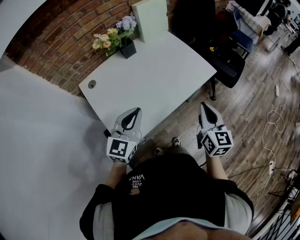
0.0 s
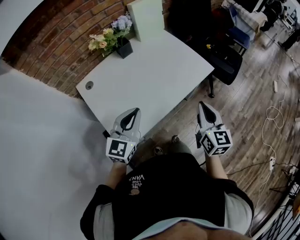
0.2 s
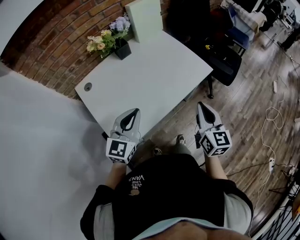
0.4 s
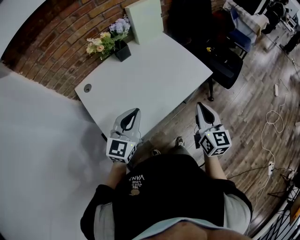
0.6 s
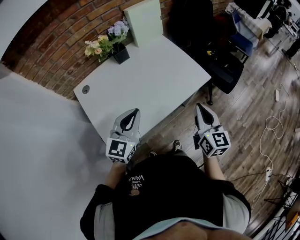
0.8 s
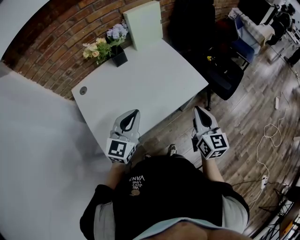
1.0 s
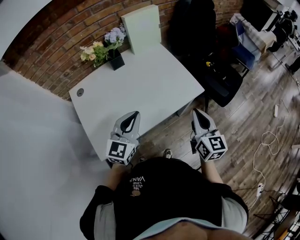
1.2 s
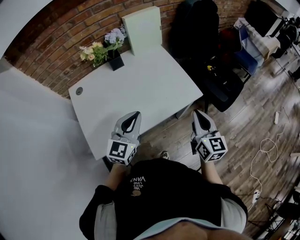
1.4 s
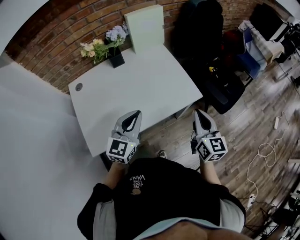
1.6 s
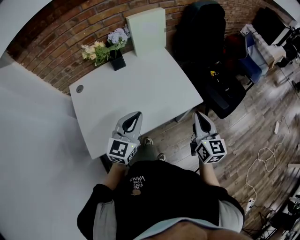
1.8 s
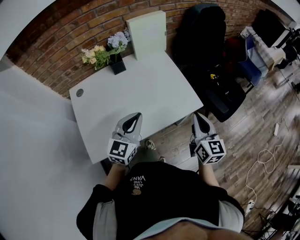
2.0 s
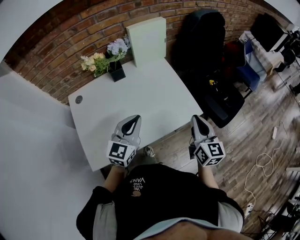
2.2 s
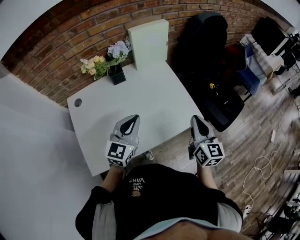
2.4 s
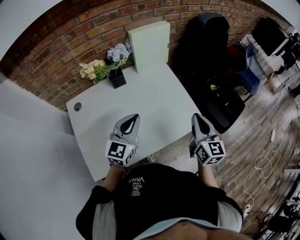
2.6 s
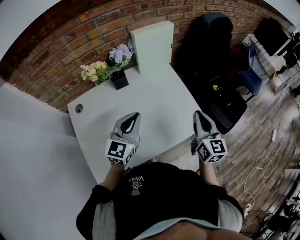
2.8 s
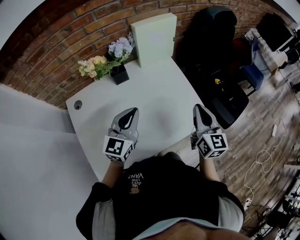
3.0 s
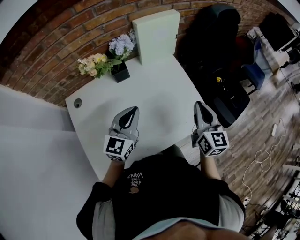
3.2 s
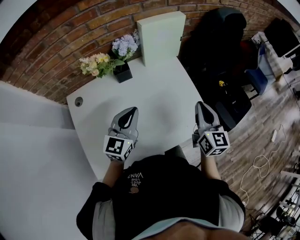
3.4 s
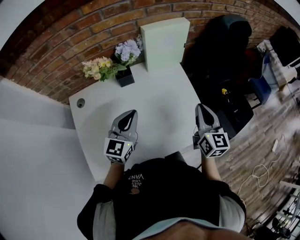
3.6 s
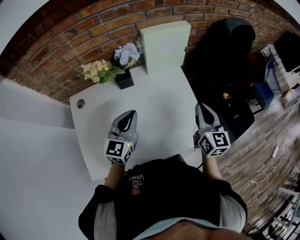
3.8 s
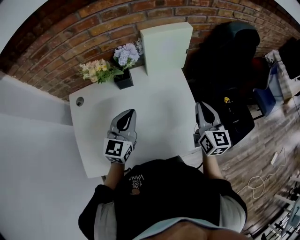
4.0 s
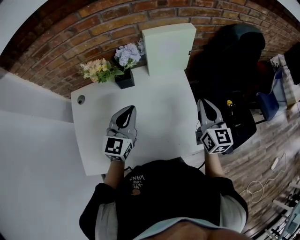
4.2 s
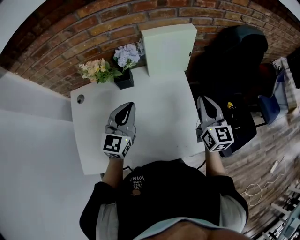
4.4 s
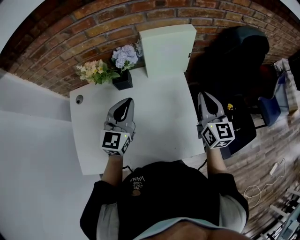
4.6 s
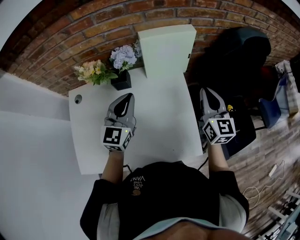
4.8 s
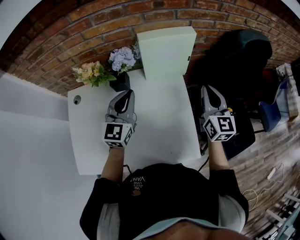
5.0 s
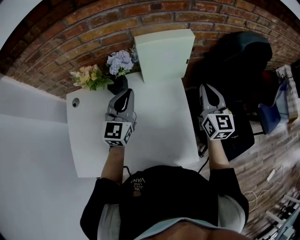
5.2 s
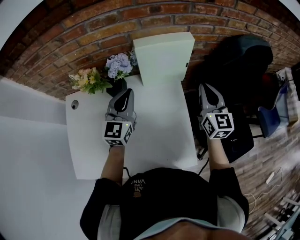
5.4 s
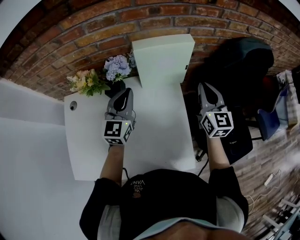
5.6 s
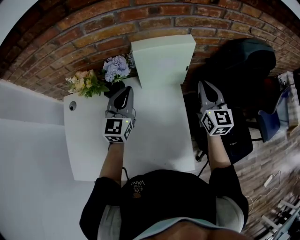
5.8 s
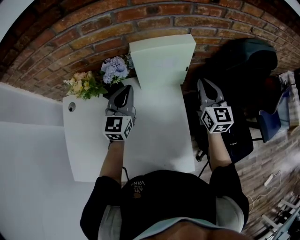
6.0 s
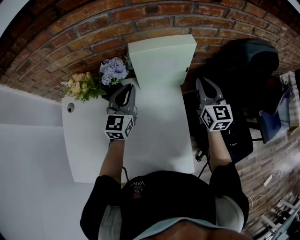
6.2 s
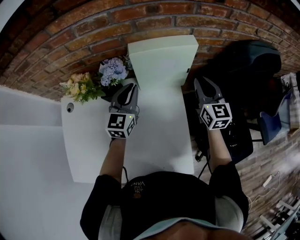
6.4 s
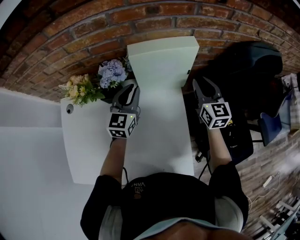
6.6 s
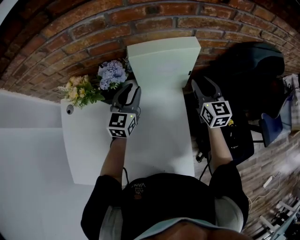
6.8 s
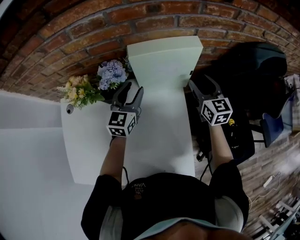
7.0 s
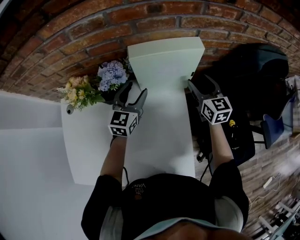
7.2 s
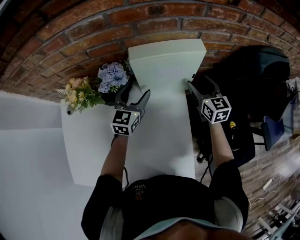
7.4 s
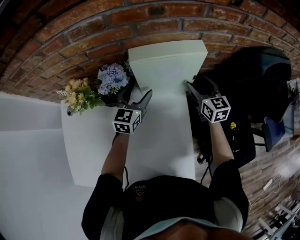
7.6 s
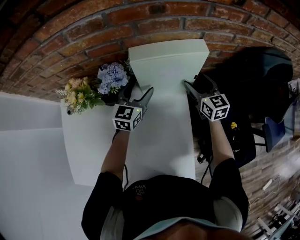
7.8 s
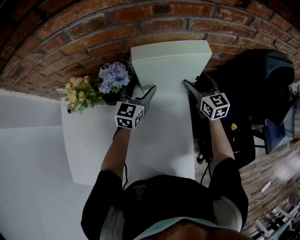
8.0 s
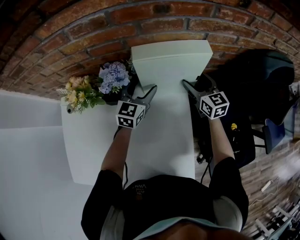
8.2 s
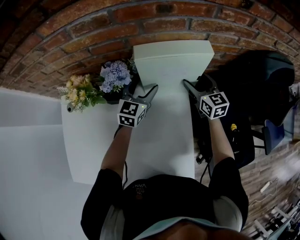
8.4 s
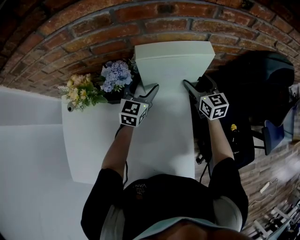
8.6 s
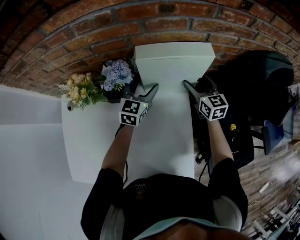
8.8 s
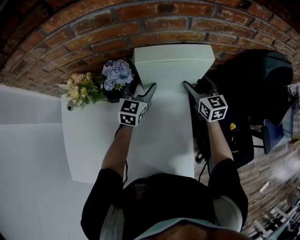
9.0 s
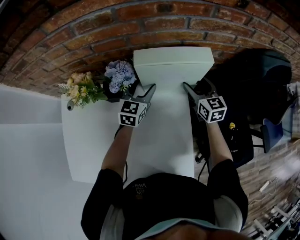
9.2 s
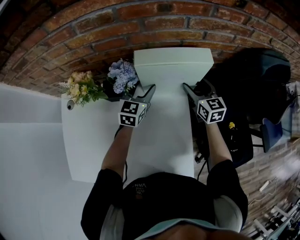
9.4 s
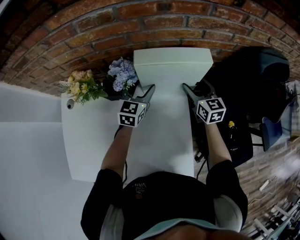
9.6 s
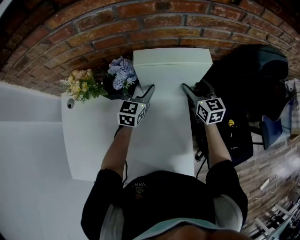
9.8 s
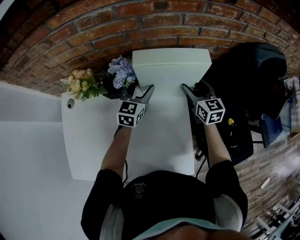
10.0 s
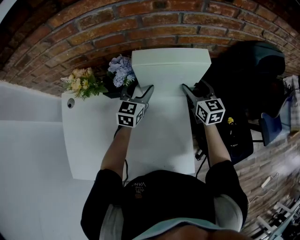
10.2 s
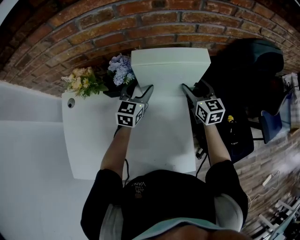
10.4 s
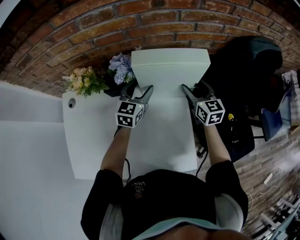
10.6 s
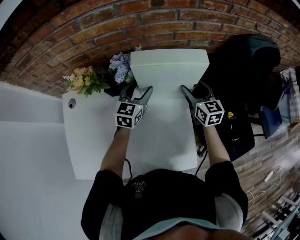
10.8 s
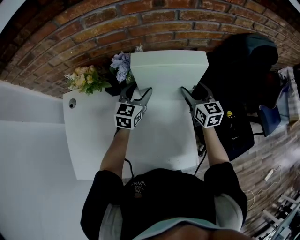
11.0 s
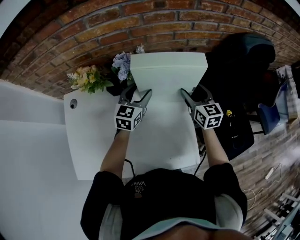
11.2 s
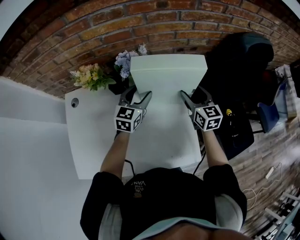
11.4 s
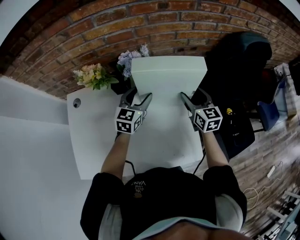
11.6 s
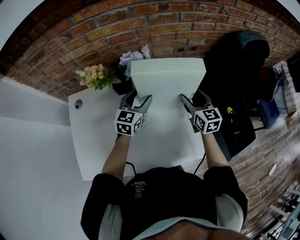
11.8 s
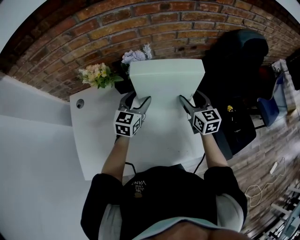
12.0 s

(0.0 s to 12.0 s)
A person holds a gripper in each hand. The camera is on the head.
0.0 s - 1.6 s: Both grippers travel together to the right and forward, some 20 cm.
1.6 s - 3.0 s: The two grippers go roughly 20 cm forward and to the left.
3.0 s - 4.4 s: The left gripper shifts about 10 cm forward; the right gripper goes approximately 15 cm forward.
4.4 s - 6.0 s: Both grippers move forward, roughly 15 cm.
6.0 s - 7.6 s: Both grippers move downward and forward, some 15 cm. The right gripper opens its fingers; the left gripper opens up.
7.6 s - 9.0 s: The grippers move only a little.
9.0 s - 10.4 s: Both grippers travel together backward, some 5 cm.
10.4 s - 12.0 s: The right gripper shifts approximately 15 cm backward, while the left gripper is displaced backward and to the left by some 10 cm.

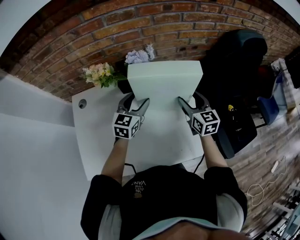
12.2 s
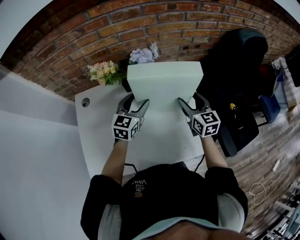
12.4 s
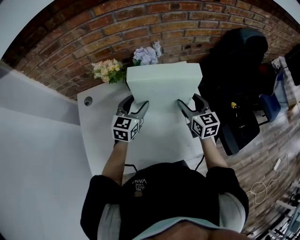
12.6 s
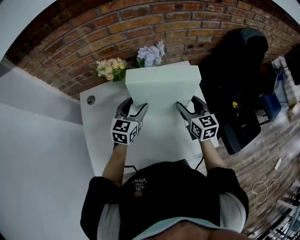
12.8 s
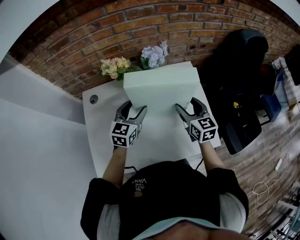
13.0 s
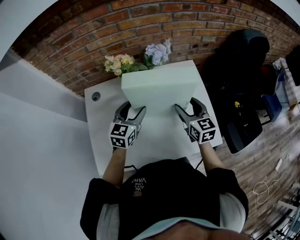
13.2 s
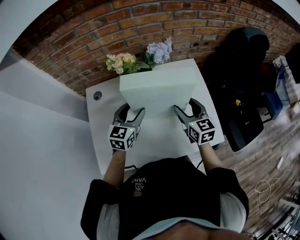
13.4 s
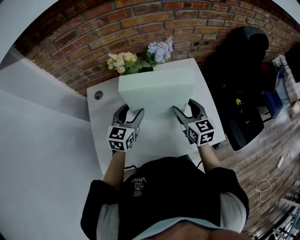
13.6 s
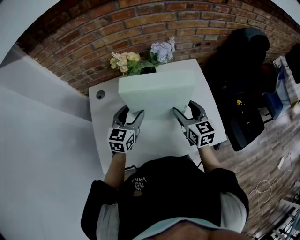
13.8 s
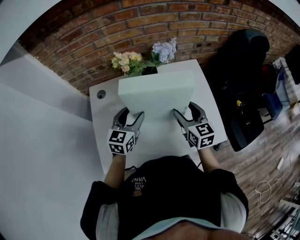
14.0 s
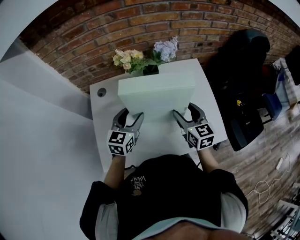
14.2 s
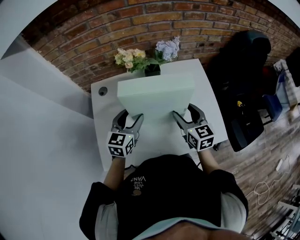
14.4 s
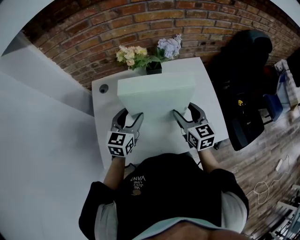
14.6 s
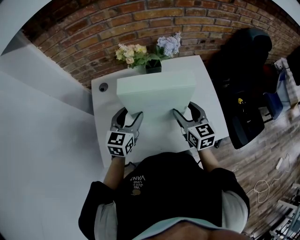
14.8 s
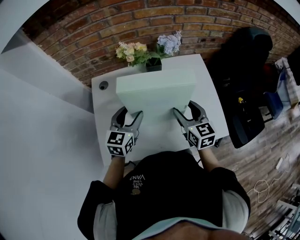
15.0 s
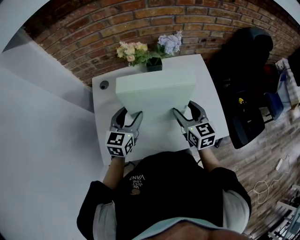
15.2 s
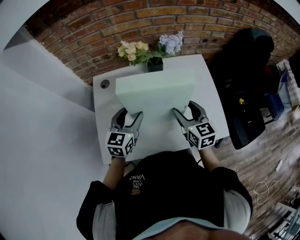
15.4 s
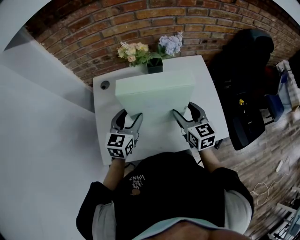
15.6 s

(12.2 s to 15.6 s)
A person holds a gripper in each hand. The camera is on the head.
12.2 s - 13.8 s: The grippers both shift to the left and backward by roughly 20 cm.
13.8 s - 15.6 s: The left gripper shifts roughly 5 cm backward, while the right gripper ends up about 5 cm from where it was.

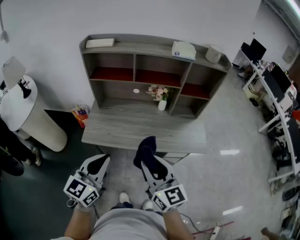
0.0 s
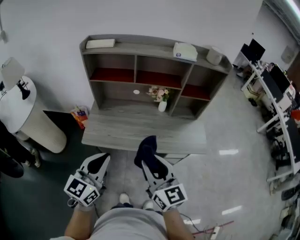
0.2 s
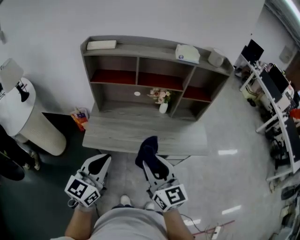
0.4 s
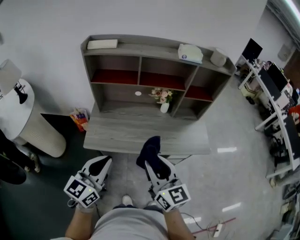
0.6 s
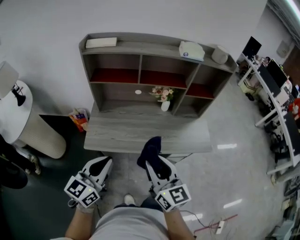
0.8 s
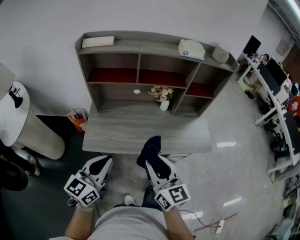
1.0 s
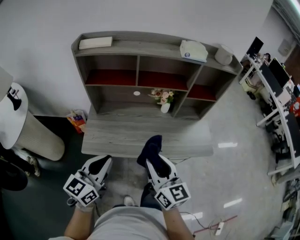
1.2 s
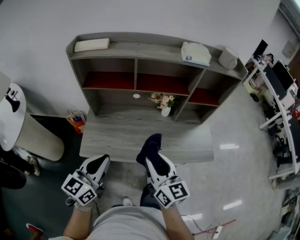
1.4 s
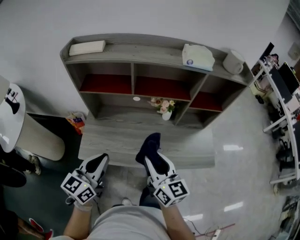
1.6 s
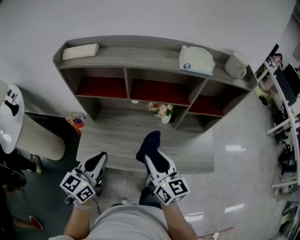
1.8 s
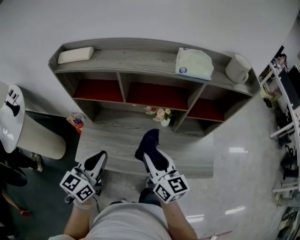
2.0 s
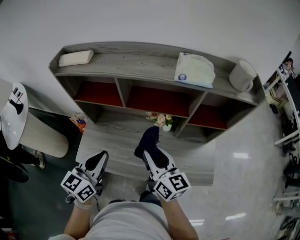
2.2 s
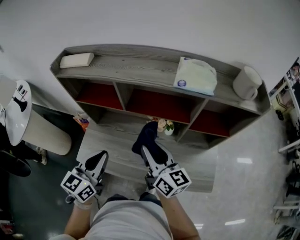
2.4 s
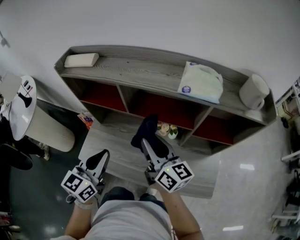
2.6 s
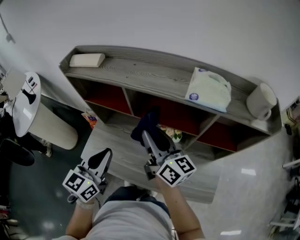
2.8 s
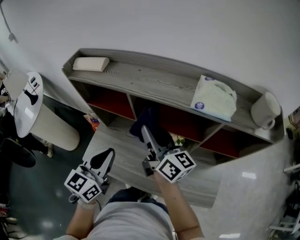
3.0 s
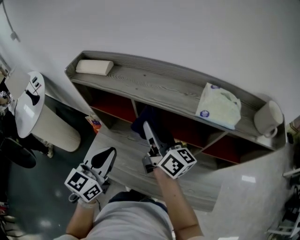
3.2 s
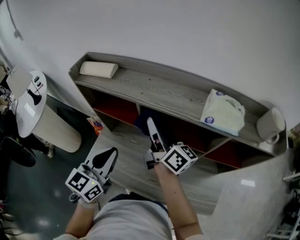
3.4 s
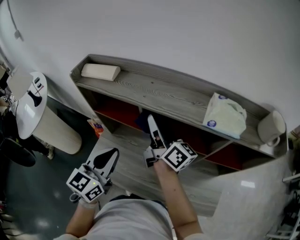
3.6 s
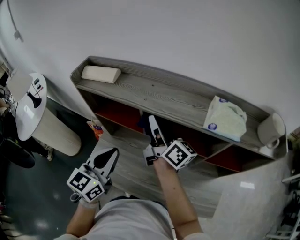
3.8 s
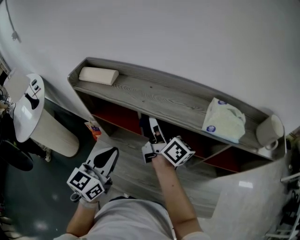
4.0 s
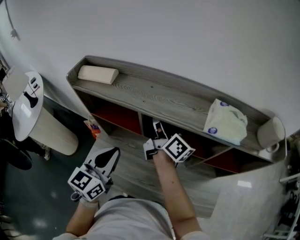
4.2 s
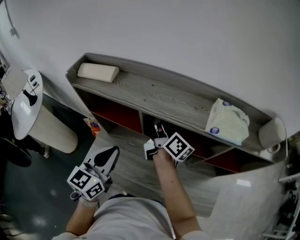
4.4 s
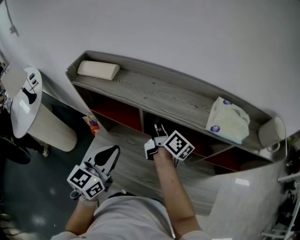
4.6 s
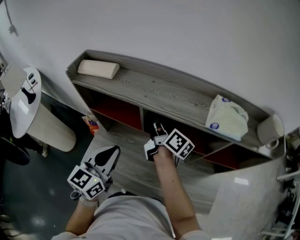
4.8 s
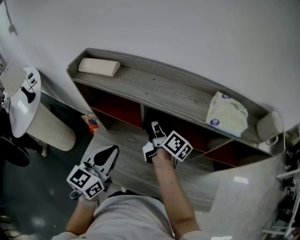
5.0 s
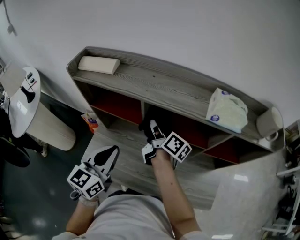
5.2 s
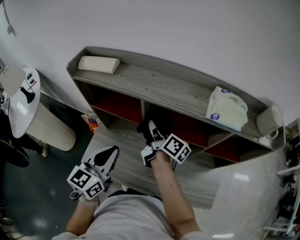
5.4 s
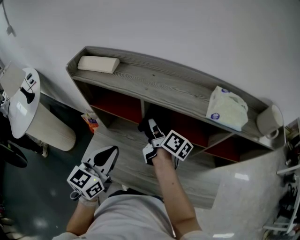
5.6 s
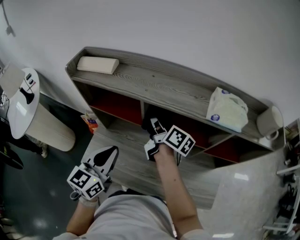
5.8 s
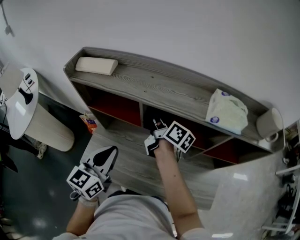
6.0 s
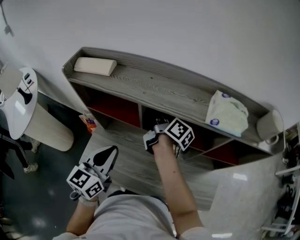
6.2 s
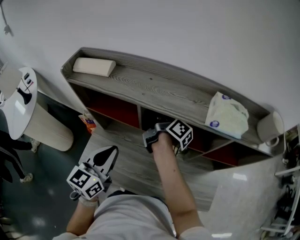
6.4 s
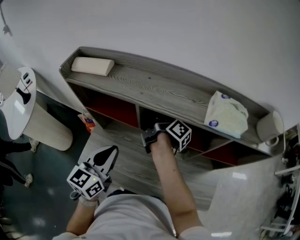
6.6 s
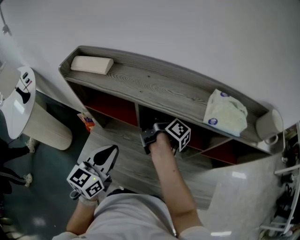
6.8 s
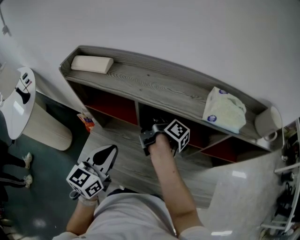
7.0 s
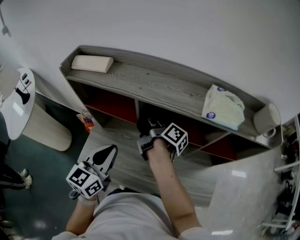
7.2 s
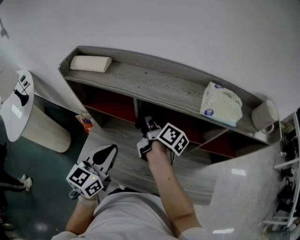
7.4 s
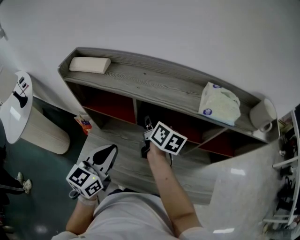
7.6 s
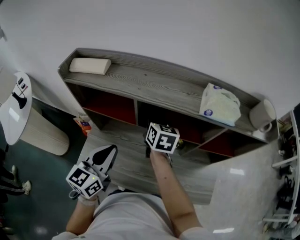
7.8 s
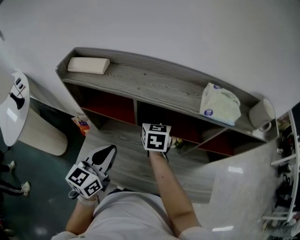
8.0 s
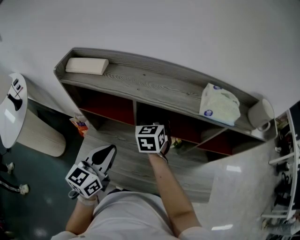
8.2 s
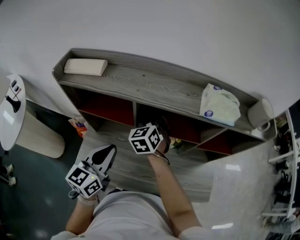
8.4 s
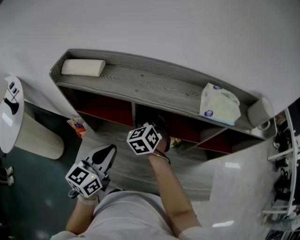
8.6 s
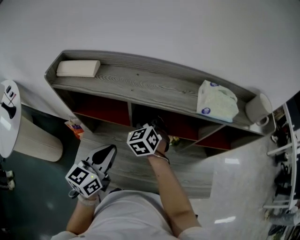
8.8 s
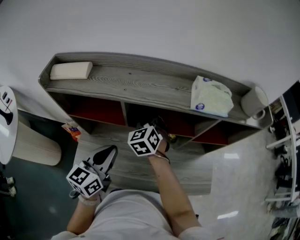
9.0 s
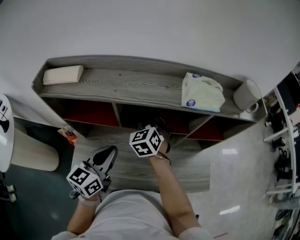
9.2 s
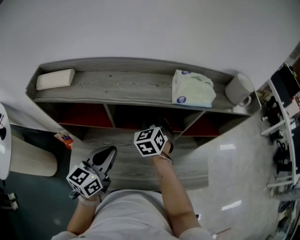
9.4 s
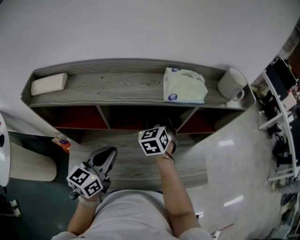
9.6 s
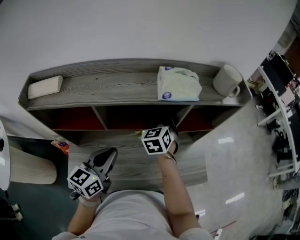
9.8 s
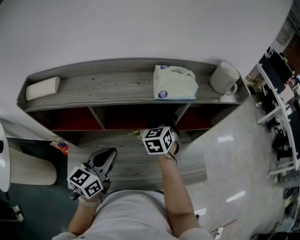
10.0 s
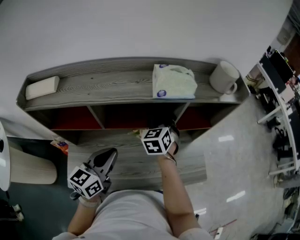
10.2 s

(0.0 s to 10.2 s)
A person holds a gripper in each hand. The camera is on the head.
0.0 s - 1.4 s: Both grippers move forward, approximately 15 cm.
1.4 s - 3.0 s: The left gripper moves forward and to the right, roughly 20 cm, and changes its angle by about 20 degrees. Meanwhile the right gripper moves forward, some 30 cm, and swivels some 40 degrees.
3.0 s - 4.4 s: The left gripper heads forward, covering about 5 cm, while the right gripper shifts some 15 cm forward, and swivels roughly 20 degrees.
5.8 s - 7.2 s: The right gripper swivels about 20 degrees.
7.2 s - 8.8 s: The right gripper rolls counterclockwise, seen from behind, by roughly 110 degrees.
8.8 s - 10.2 s: The right gripper goes about 20 cm to the right, and changes its angle by about 30 degrees, while the left gripper travels to the right by roughly 10 cm.
